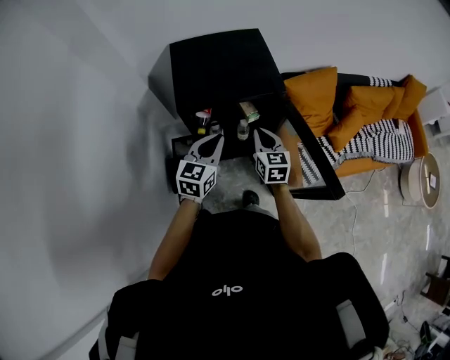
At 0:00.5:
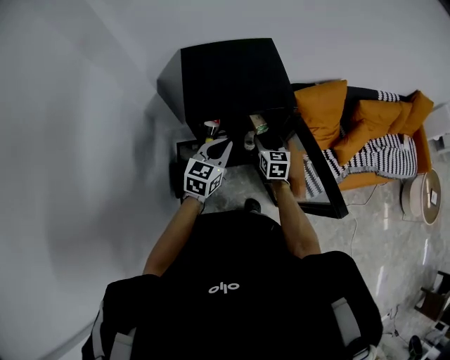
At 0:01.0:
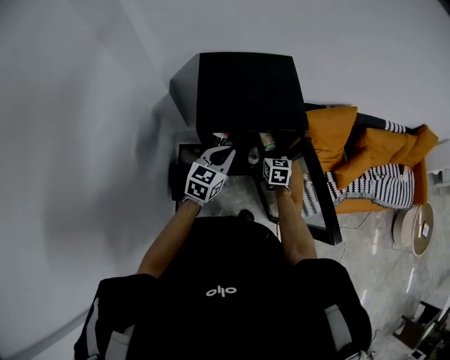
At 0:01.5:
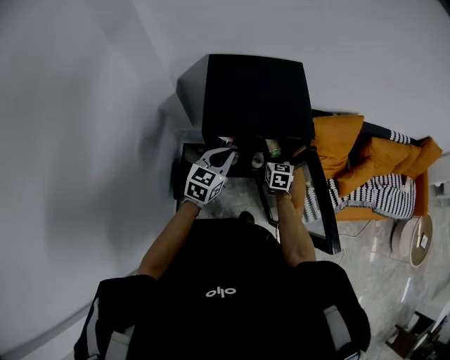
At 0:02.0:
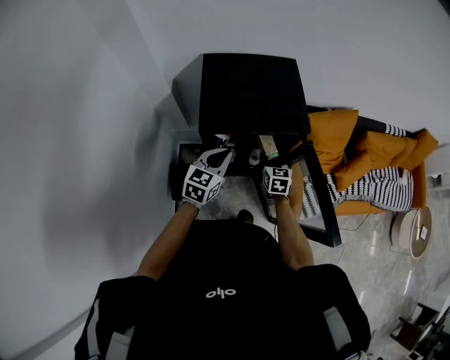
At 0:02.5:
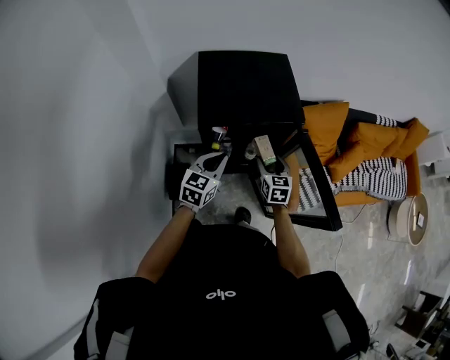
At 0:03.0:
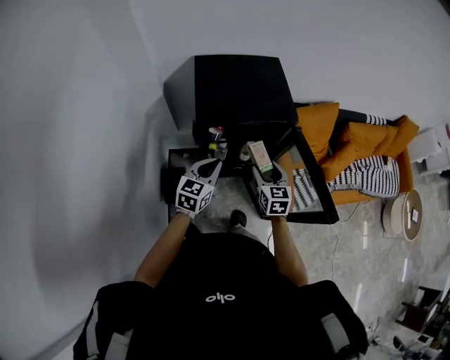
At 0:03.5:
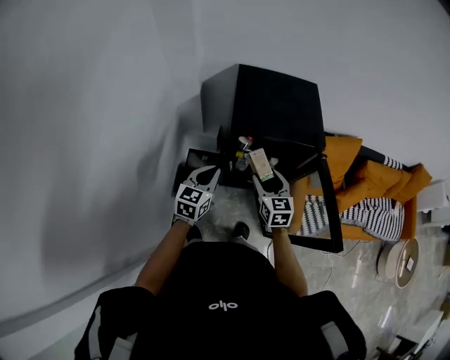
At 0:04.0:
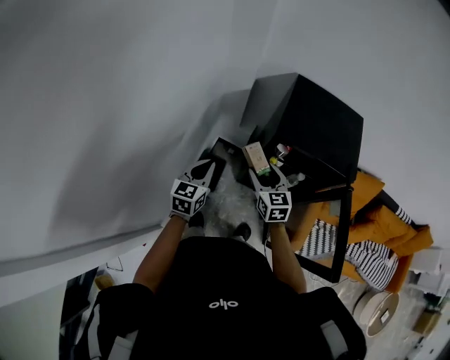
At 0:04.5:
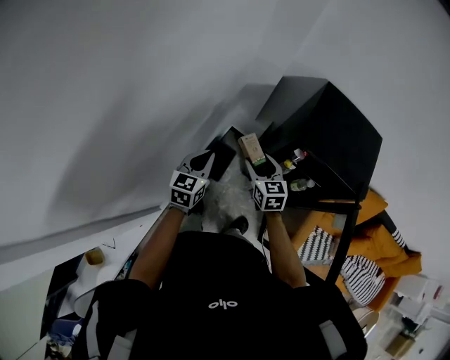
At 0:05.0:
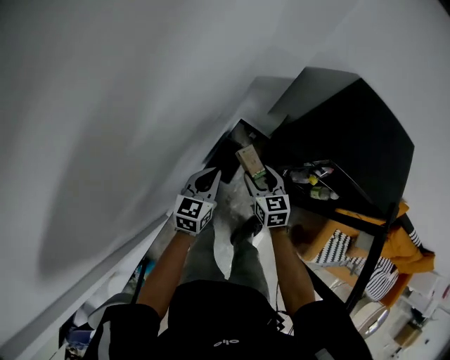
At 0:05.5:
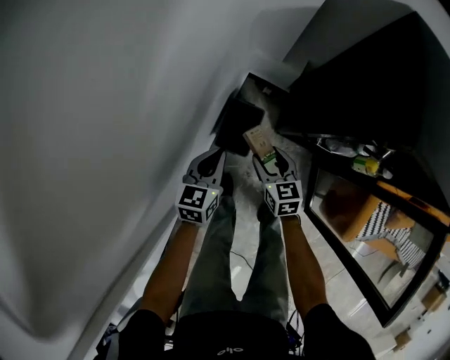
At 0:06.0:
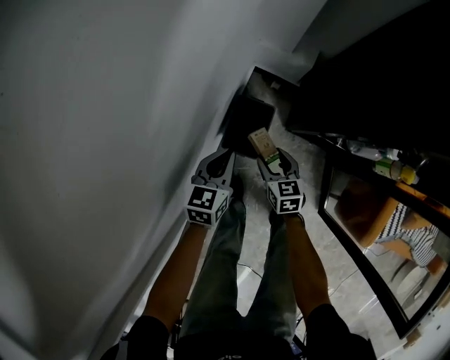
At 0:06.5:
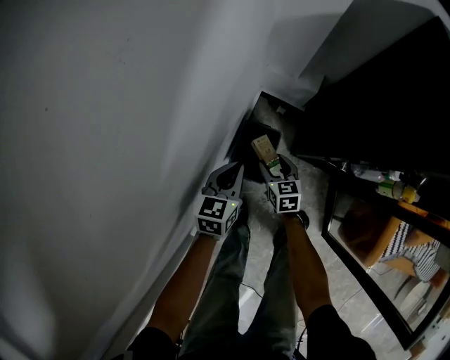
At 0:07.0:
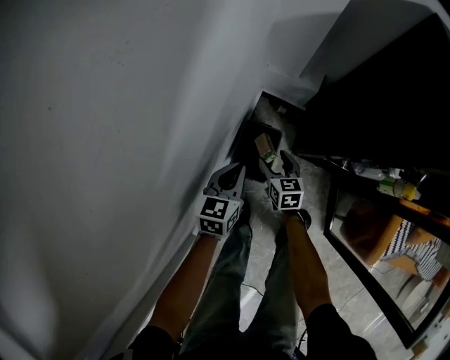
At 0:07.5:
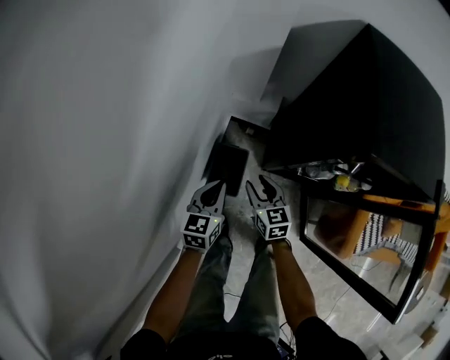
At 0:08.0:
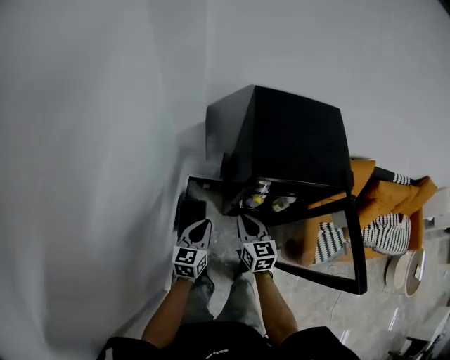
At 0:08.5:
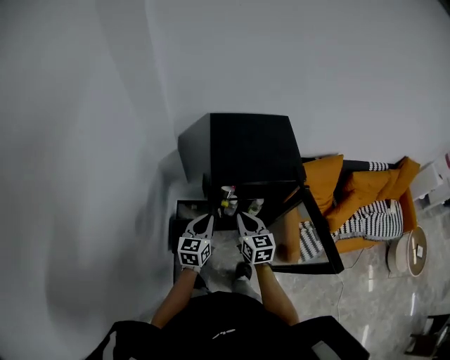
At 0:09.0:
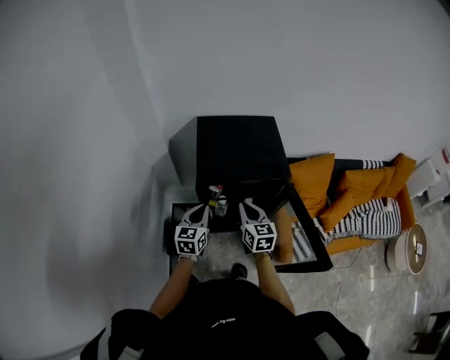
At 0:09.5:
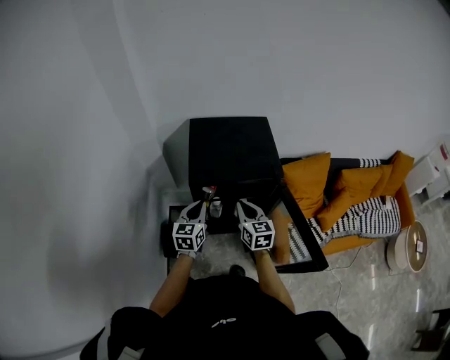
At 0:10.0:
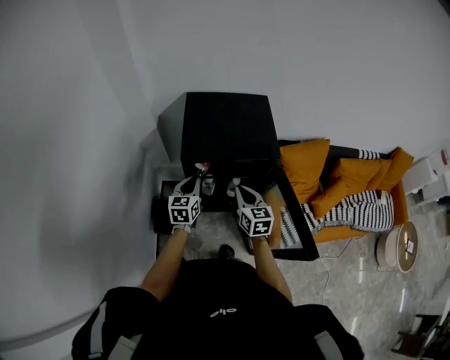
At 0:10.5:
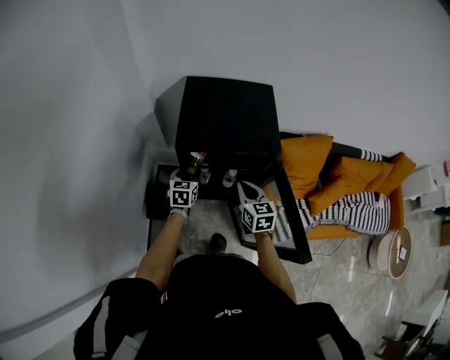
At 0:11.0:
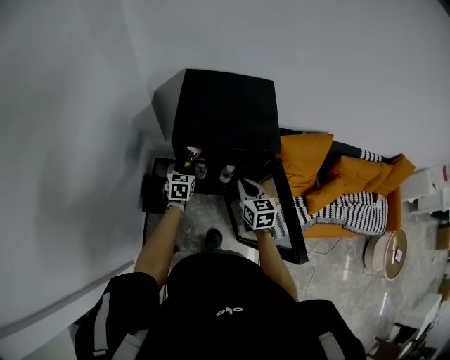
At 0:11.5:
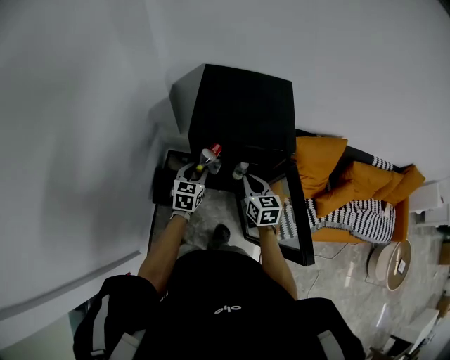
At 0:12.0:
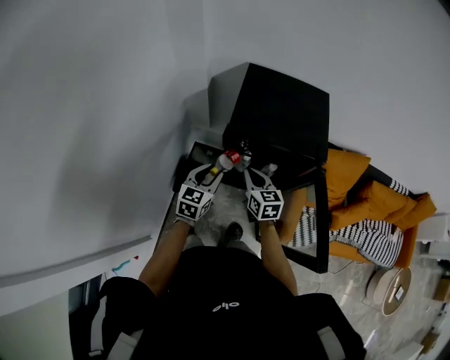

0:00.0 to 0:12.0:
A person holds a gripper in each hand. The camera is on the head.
0:00.0 to 0:02.0: The left gripper moves roughly 5 cm, while the right gripper goes approximately 15 cm downward and forward, and opens.
0:02.0 to 0:04.0: The left gripper ends up roughly 30 cm from where it was, and swivels approximately 30 degrees, while the right gripper ends up roughly 30 cm from where it was, and changes its angle by roughly 30 degrees.
0:04.0 to 0:06.0: Both grippers travel together downward, some 40 cm. The right gripper changes its angle by roughly 20 degrees.
0:06.0 to 0:08.0: The right gripper goes approximately 35 cm upward, swivels about 30 degrees, and closes its fingers. Meanwhile the left gripper travels upward and to the right by roughly 30 cm.
0:08.0 to 0:10.0: The right gripper goes some 25 cm to the right and upward; the left gripper shifts approximately 20 cm to the right, upward and forward.
0:10.0 to 0:12.0: The right gripper travels to the left by roughly 10 cm; the left gripper heads backward and to the left, covering approximately 10 cm, and opens its fingers.

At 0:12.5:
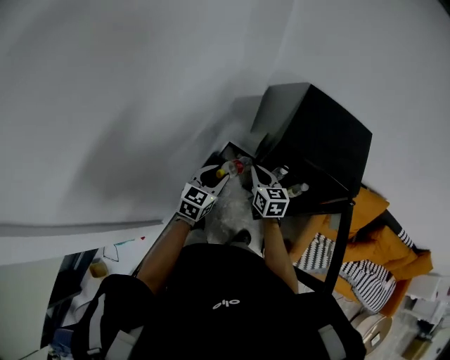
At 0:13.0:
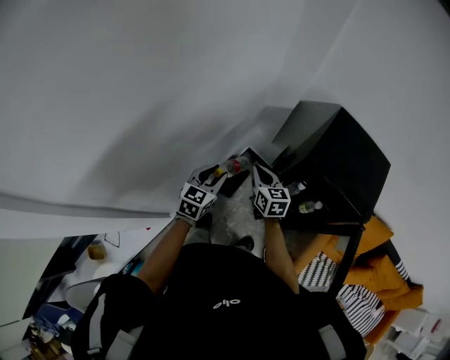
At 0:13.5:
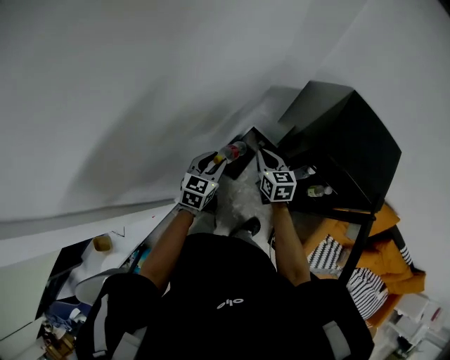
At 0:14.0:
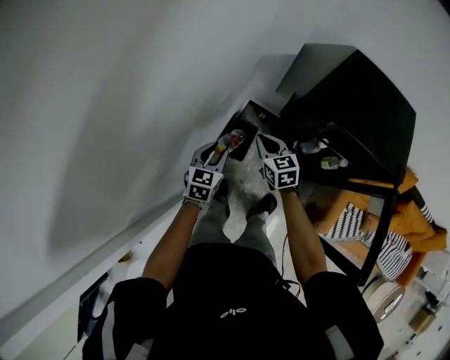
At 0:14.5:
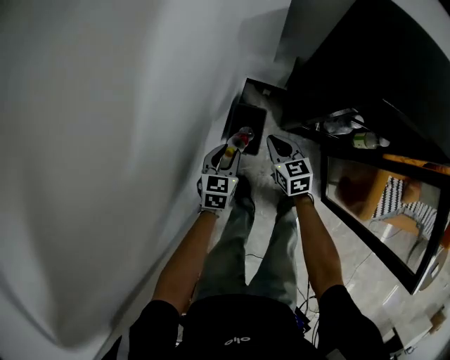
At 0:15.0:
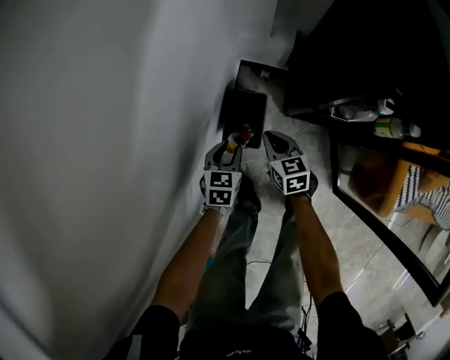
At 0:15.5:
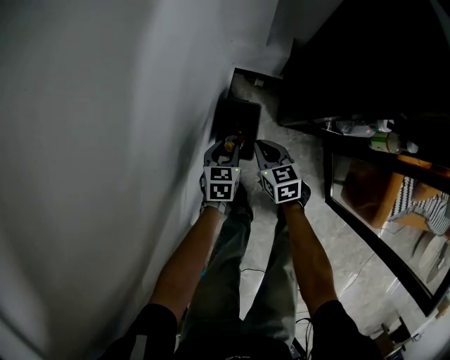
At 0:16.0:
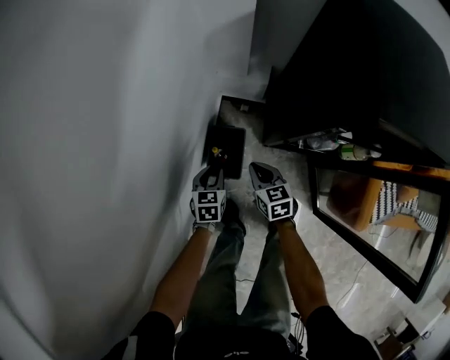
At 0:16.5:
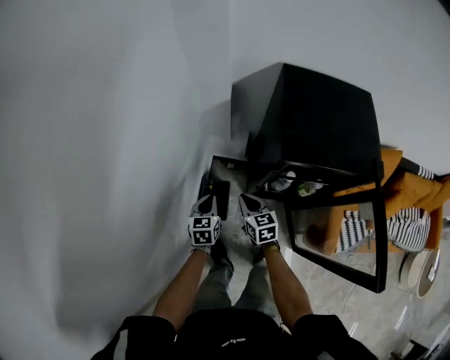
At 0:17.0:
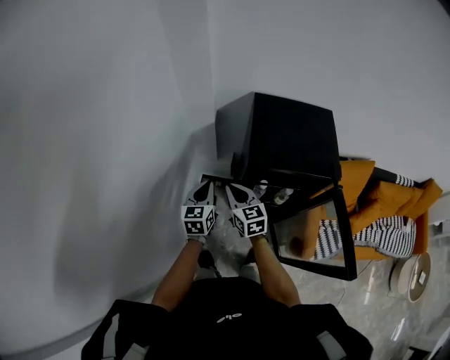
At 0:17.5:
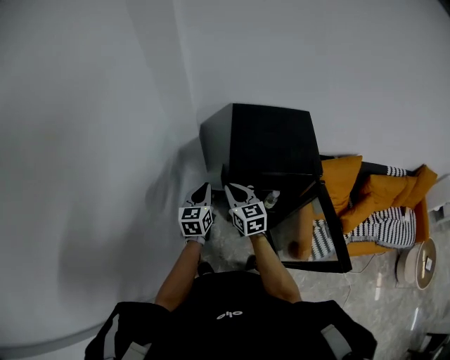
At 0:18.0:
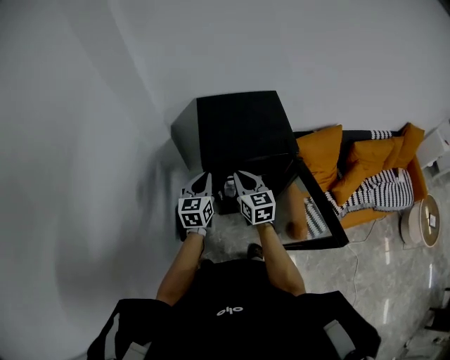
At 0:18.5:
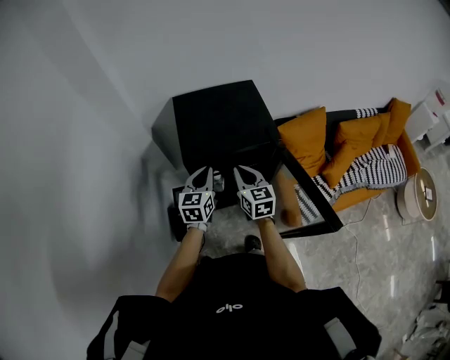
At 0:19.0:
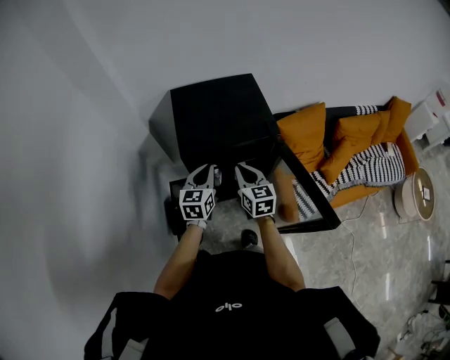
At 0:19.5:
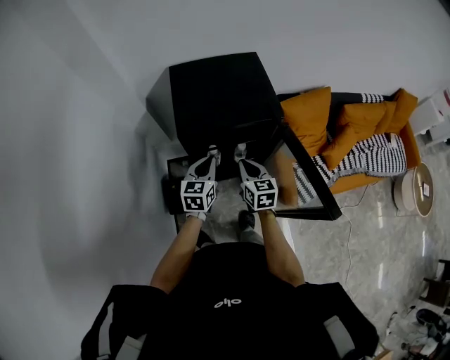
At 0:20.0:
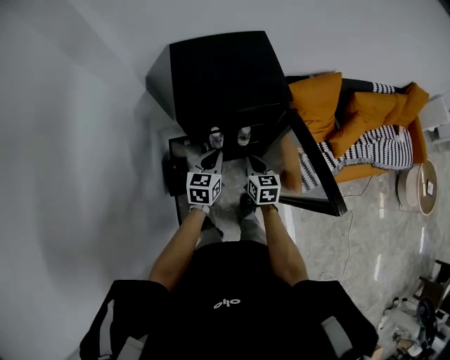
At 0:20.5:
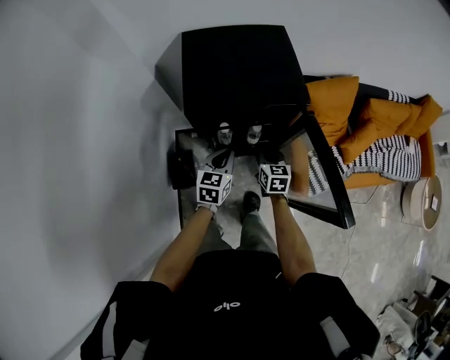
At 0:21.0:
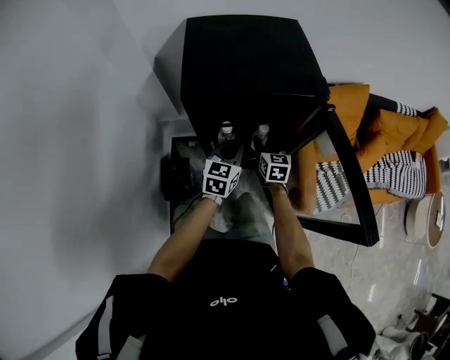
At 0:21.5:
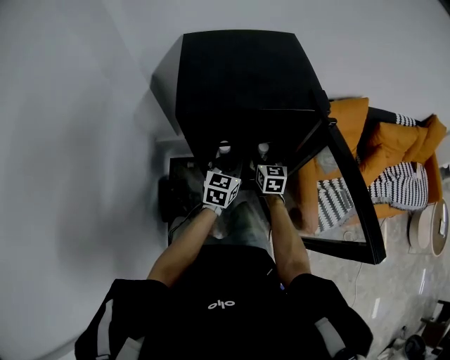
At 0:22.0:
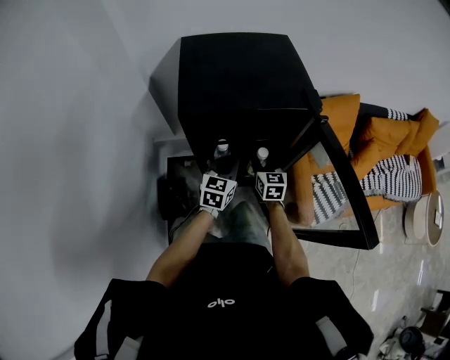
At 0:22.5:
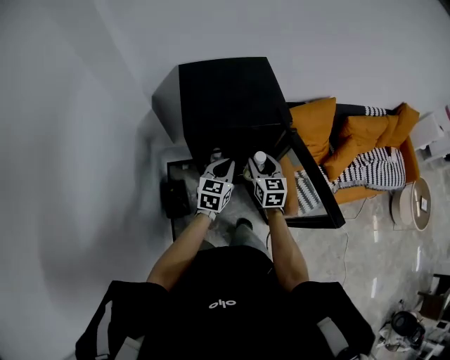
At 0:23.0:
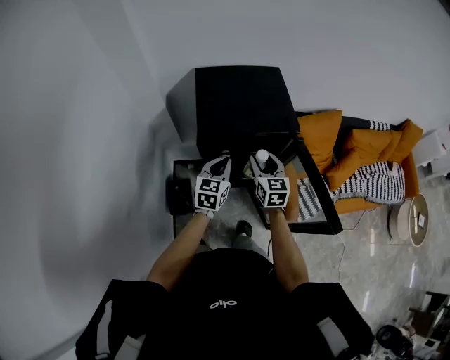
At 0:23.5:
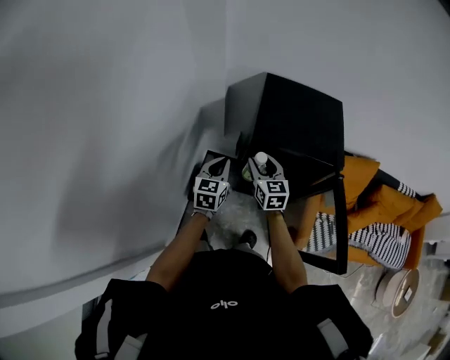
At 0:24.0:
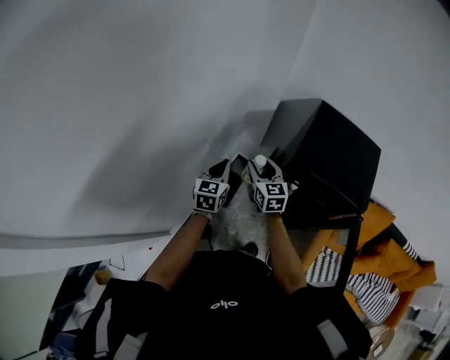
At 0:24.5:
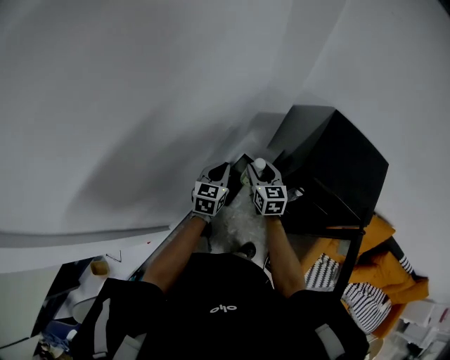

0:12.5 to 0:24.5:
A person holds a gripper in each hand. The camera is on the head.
0:12.5 to 0:14.5: Both grippers travel together downward, roughly 30 cm.
0:14.5 to 0:16.5: The grippers both shift upward and to the right by approximately 15 cm. The left gripper closes up.
0:16.5 to 0:18.5: The right gripper changes place by roughly 35 cm, and turns by approximately 30 degrees, while the left gripper moves approximately 35 cm, and turns by approximately 30 degrees.
0:18.5 to 0:20.5: The two grippers go roughly 15 cm downward.
0:20.5 to 0:22.5: The right gripper goes about 10 cm upward, and opens up. Meanwhile the left gripper reaches approximately 10 cm downward, then returns.
0:22.5 to 0:24.5: The left gripper moves about 35 cm, and turns by some 50 degrees, while the right gripper changes place by some 40 cm, and rotates roughly 50 degrees.

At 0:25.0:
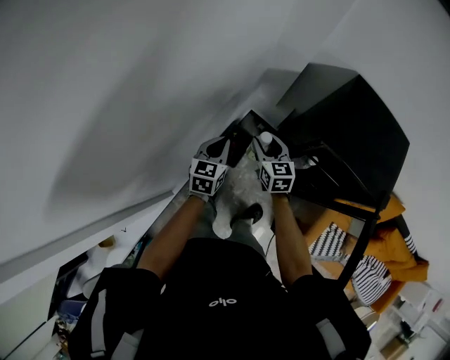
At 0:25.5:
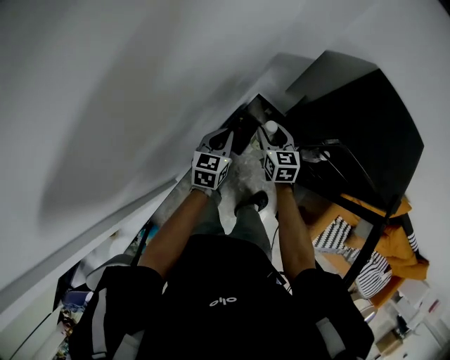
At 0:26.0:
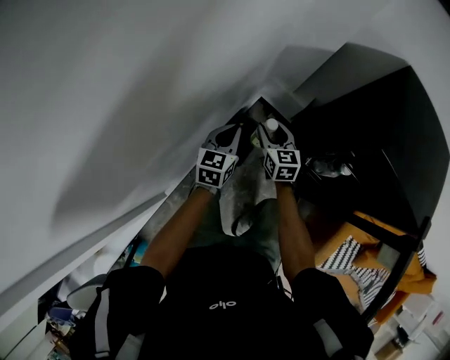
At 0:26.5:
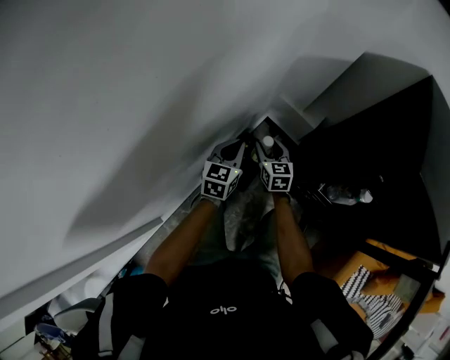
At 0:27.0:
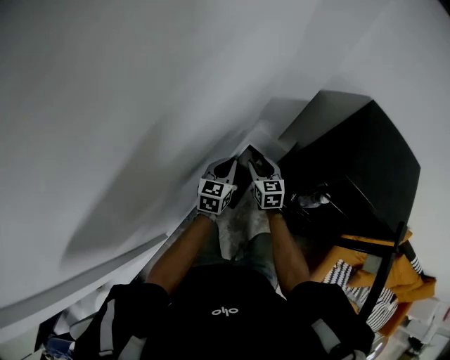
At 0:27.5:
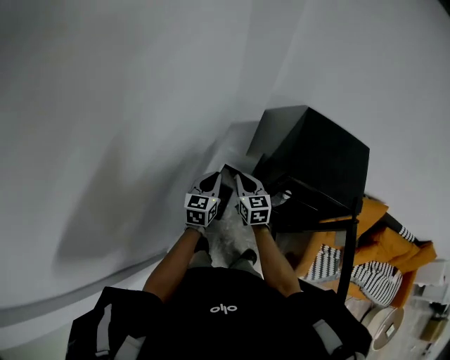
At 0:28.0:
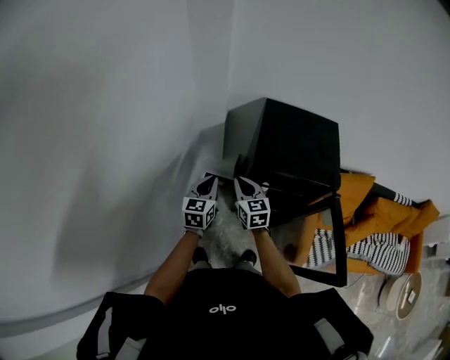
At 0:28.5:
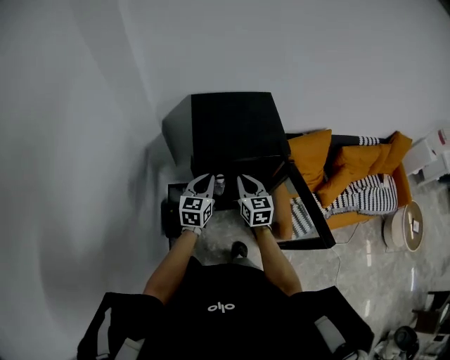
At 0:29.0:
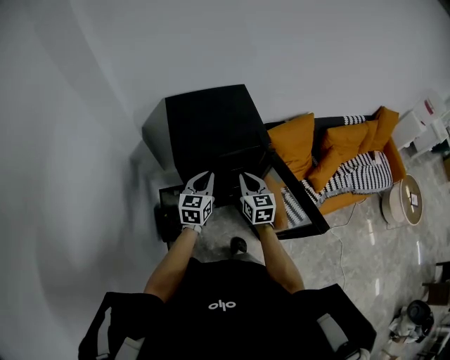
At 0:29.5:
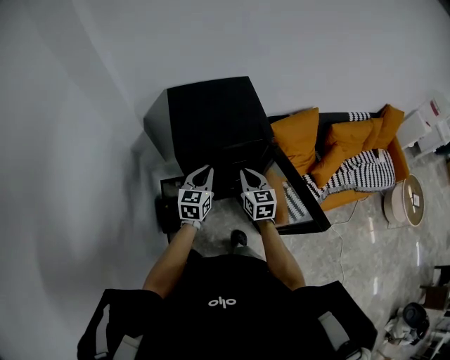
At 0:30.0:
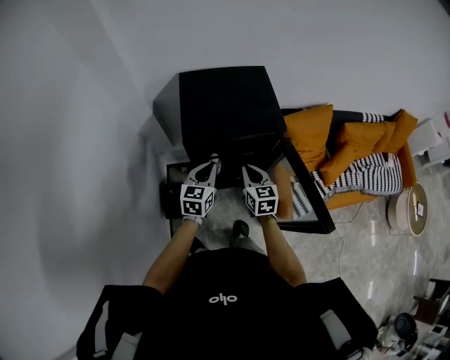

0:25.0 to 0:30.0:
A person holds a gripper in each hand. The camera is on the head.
0:25.0 to 0:27.5: The left gripper moves roughly 30 cm downward and comes back. The right gripper moves some 35 cm downward and comes back, and closes up.
0:27.5 to 0:30.0: The right gripper moves about 35 cm, and changes its angle by about 30 degrees; the left gripper changes place by some 30 cm, and rotates about 30 degrees.
